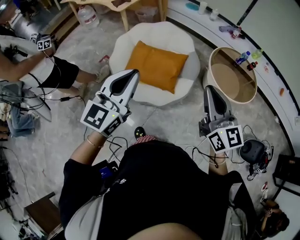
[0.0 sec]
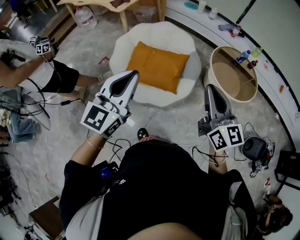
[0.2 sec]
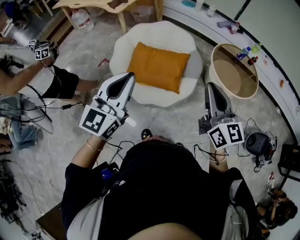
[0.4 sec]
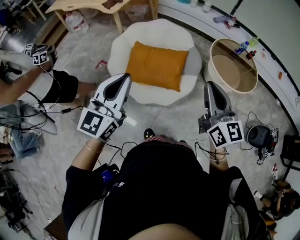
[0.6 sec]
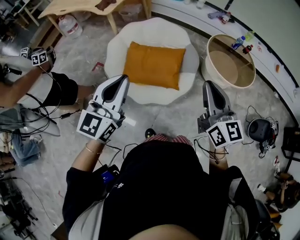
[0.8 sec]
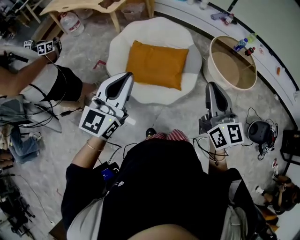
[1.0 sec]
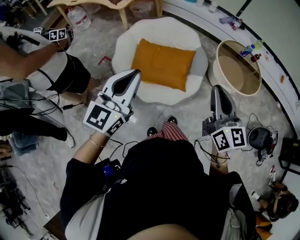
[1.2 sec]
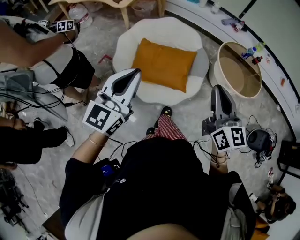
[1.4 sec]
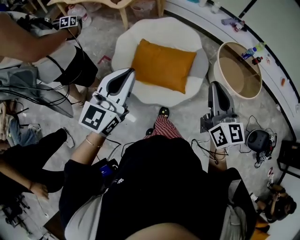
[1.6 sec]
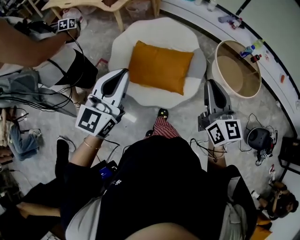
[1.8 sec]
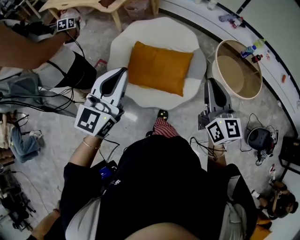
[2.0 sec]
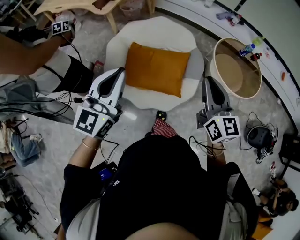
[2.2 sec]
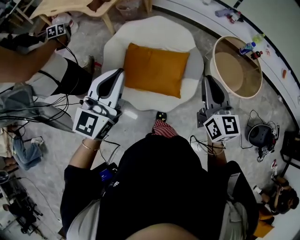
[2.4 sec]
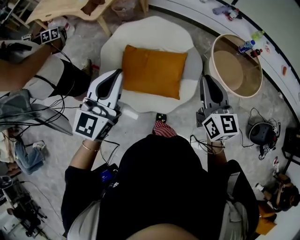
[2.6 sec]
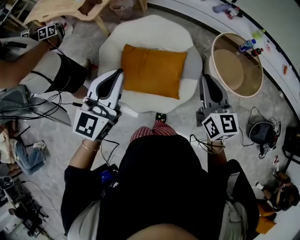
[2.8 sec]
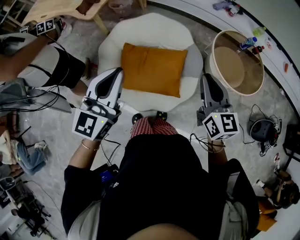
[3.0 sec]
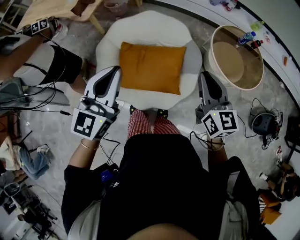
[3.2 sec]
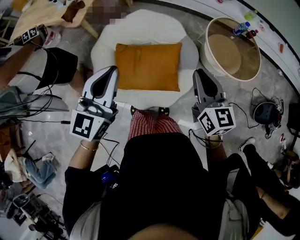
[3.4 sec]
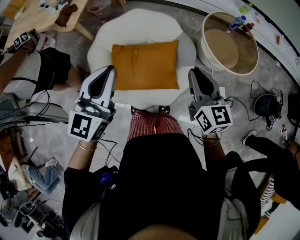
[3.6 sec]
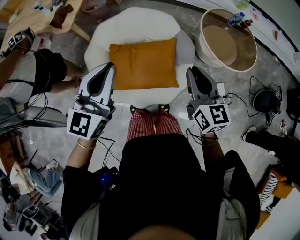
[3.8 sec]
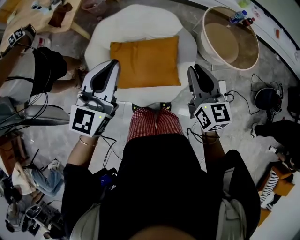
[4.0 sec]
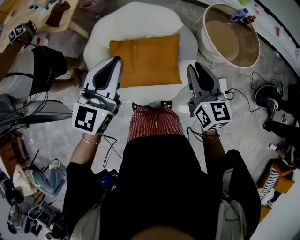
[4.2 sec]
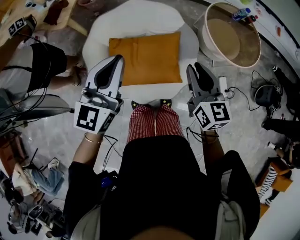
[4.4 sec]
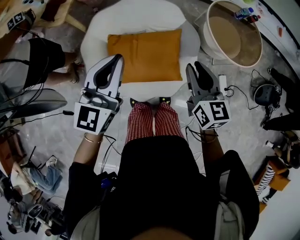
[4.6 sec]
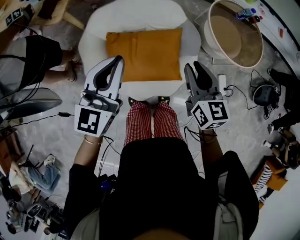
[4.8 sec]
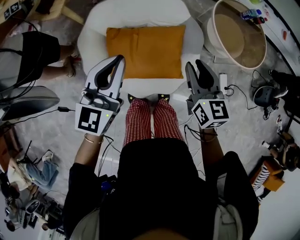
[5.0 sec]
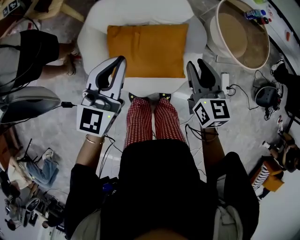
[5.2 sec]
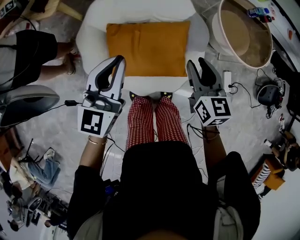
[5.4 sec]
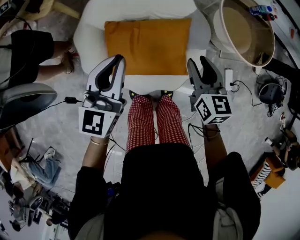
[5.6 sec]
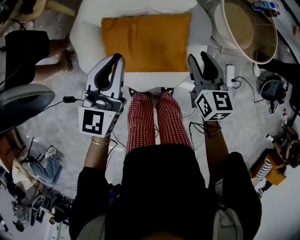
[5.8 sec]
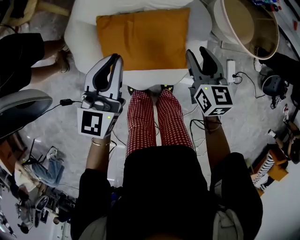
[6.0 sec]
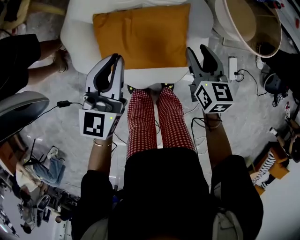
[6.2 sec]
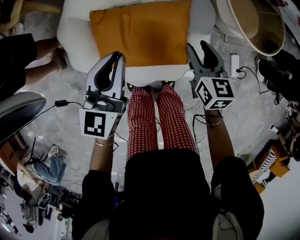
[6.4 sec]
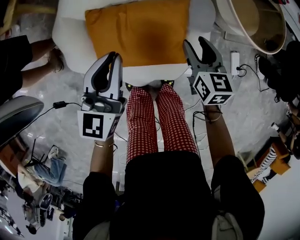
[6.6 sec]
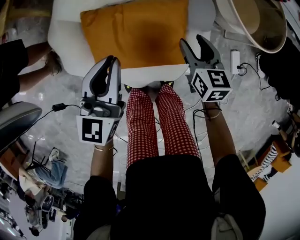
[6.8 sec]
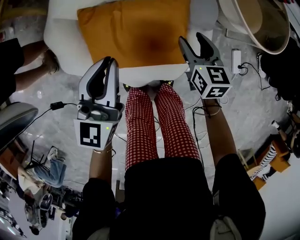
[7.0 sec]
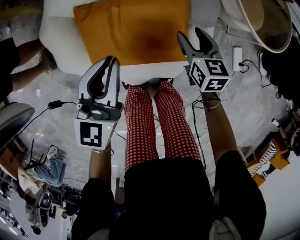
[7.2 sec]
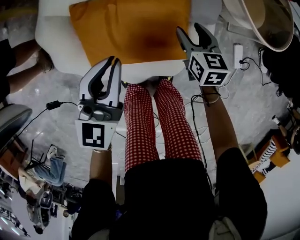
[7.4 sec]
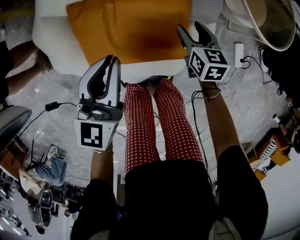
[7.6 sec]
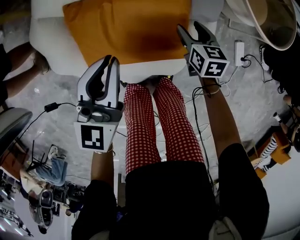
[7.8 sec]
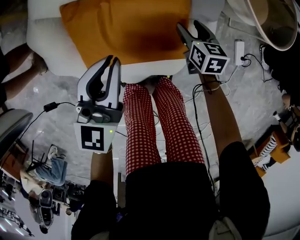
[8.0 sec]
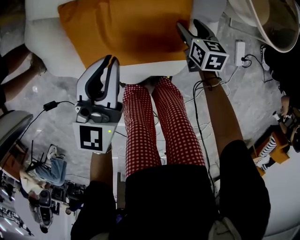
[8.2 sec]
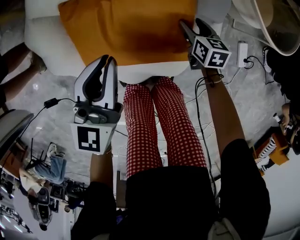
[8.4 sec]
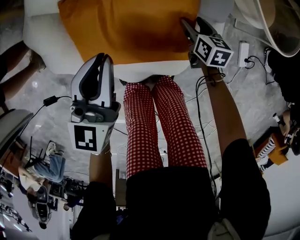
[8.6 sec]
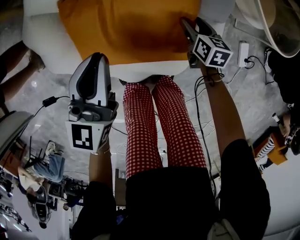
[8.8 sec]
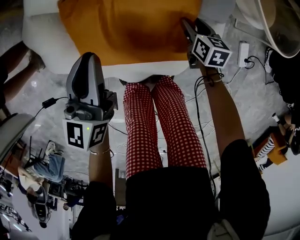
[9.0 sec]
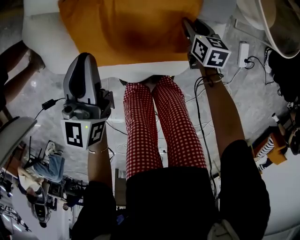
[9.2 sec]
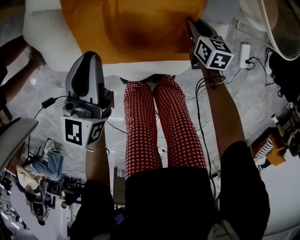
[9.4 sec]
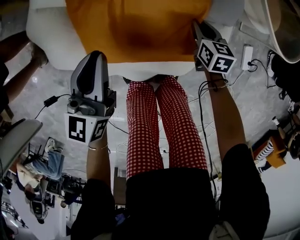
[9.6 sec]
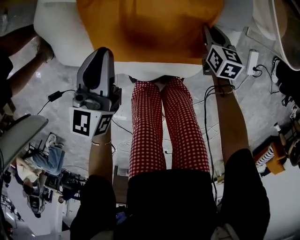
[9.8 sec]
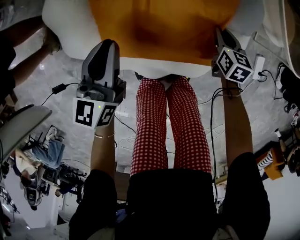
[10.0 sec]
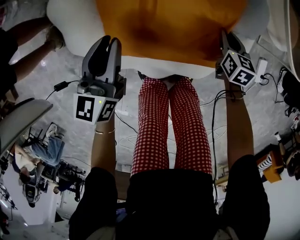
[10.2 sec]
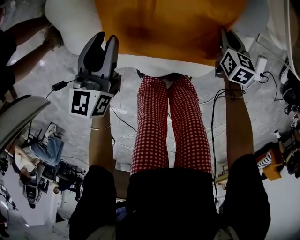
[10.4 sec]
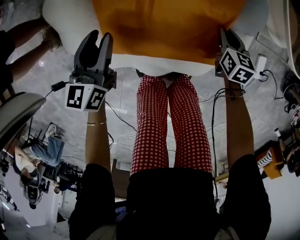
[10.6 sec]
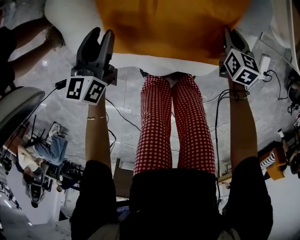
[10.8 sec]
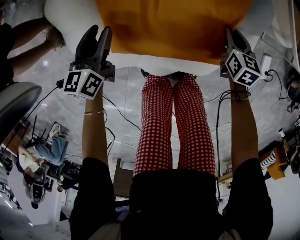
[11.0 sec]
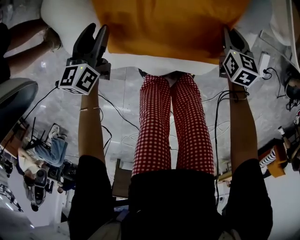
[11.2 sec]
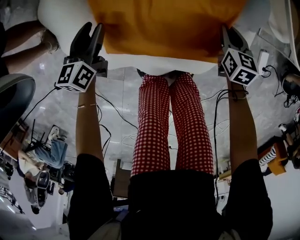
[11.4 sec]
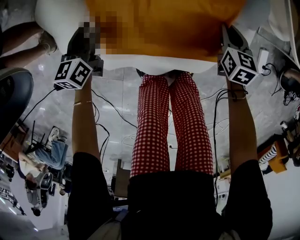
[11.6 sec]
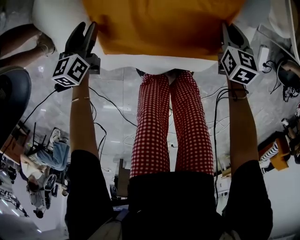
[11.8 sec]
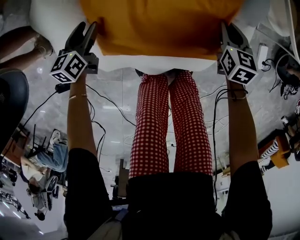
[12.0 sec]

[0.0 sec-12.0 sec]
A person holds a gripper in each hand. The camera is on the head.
0.0 sec to 1.6 sec: The grippers both shift to the left by about 15 cm.
1.6 sec to 3.0 sec: The grippers both shift forward by approximately 20 cm.
3.0 sec to 4.4 sec: The left gripper moves forward and downward, approximately 10 cm. The right gripper goes approximately 10 cm to the left and downward.
4.4 sec to 6.0 sec: Both grippers travel together downward, some 15 cm.
6.0 sec to 7.6 sec: The left gripper goes roughly 15 cm downward; the right gripper shifts roughly 25 cm downward.
7.6 sec to 9.0 sec: The right gripper shifts about 10 cm downward. The left gripper ends up approximately 5 cm from where it was.
9.0 sec to 10.4 sec: The right gripper closes, while the left gripper shifts roughly 10 cm to the left and downward, and opens its fingers.
10.4 sec to 12.0 sec: The left gripper is displaced downward and to the left by about 20 cm, turns by approximately 20 degrees, and opens.

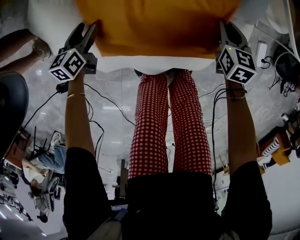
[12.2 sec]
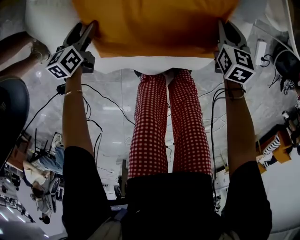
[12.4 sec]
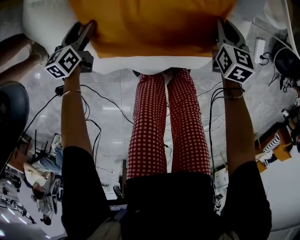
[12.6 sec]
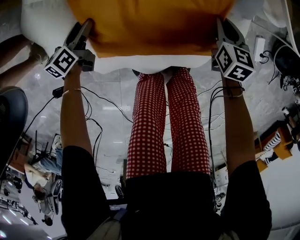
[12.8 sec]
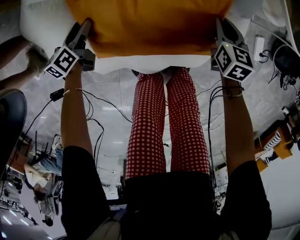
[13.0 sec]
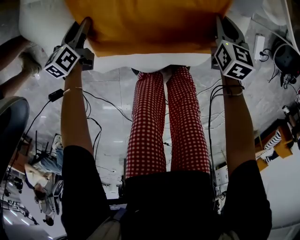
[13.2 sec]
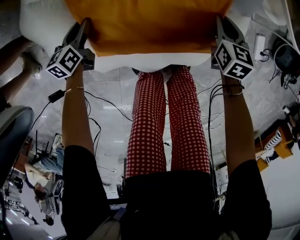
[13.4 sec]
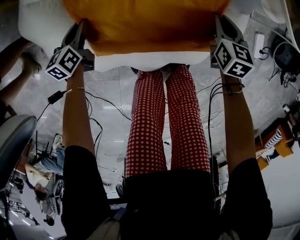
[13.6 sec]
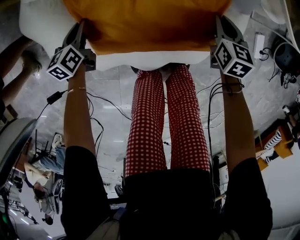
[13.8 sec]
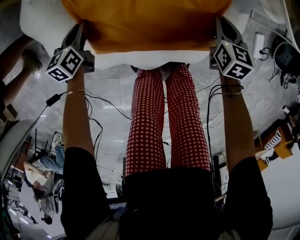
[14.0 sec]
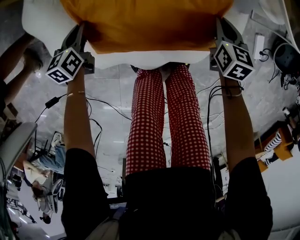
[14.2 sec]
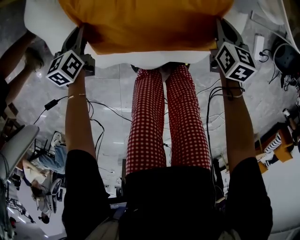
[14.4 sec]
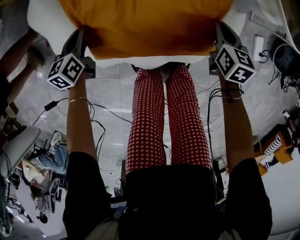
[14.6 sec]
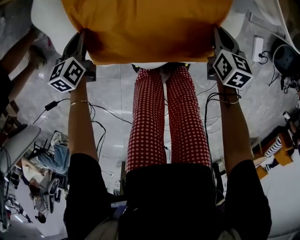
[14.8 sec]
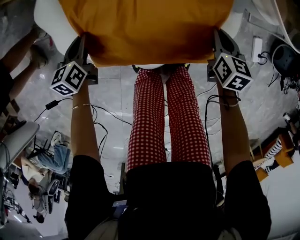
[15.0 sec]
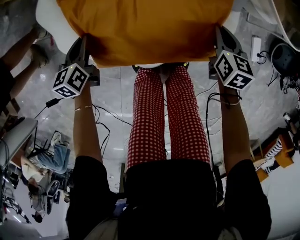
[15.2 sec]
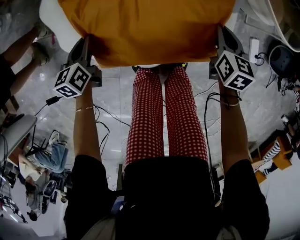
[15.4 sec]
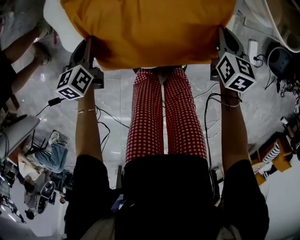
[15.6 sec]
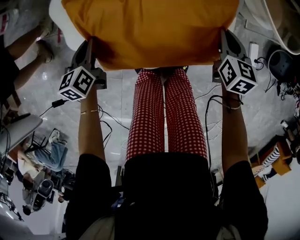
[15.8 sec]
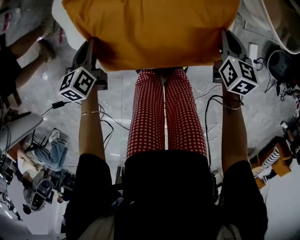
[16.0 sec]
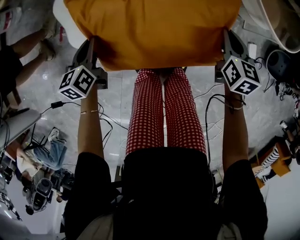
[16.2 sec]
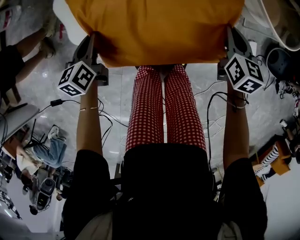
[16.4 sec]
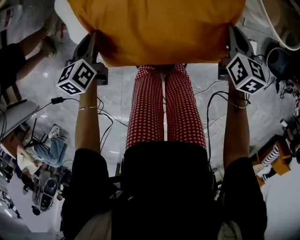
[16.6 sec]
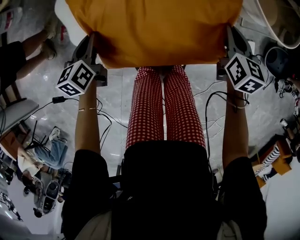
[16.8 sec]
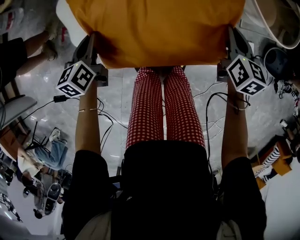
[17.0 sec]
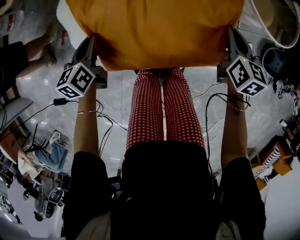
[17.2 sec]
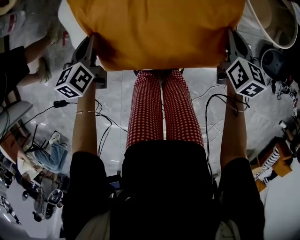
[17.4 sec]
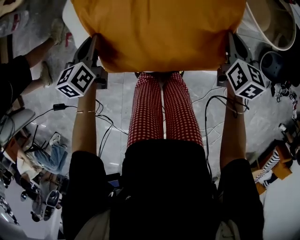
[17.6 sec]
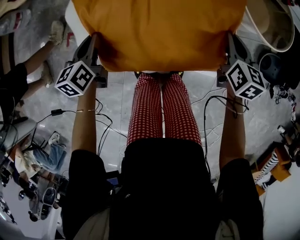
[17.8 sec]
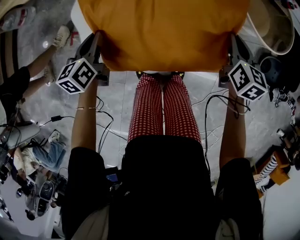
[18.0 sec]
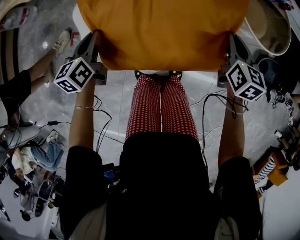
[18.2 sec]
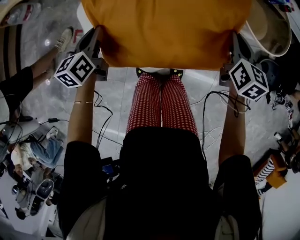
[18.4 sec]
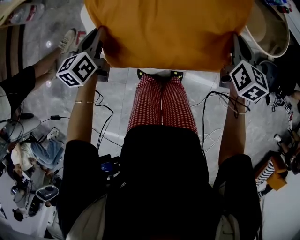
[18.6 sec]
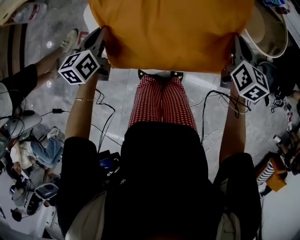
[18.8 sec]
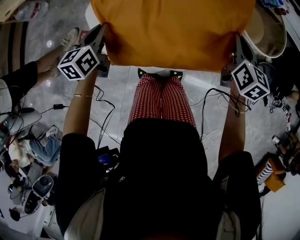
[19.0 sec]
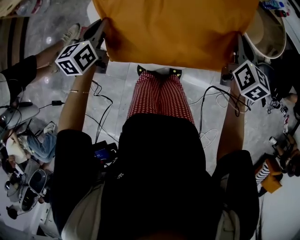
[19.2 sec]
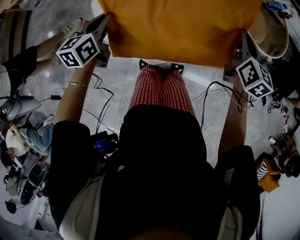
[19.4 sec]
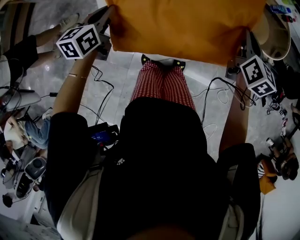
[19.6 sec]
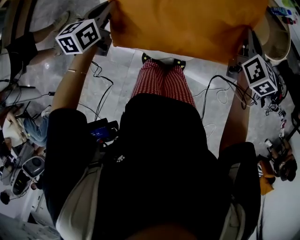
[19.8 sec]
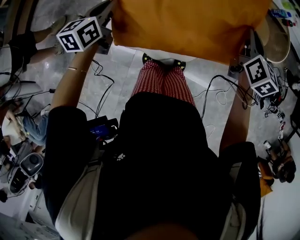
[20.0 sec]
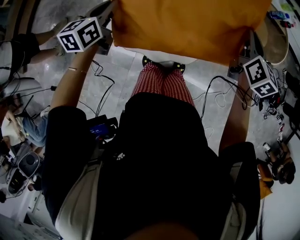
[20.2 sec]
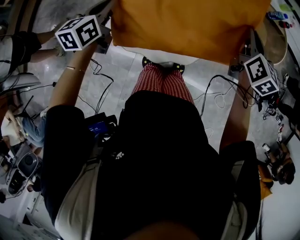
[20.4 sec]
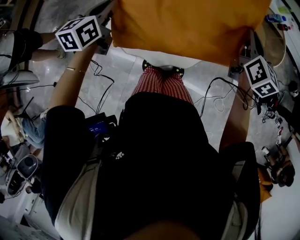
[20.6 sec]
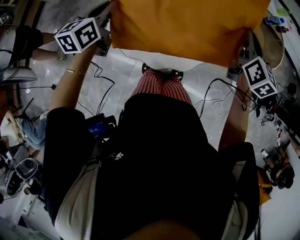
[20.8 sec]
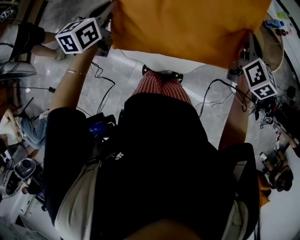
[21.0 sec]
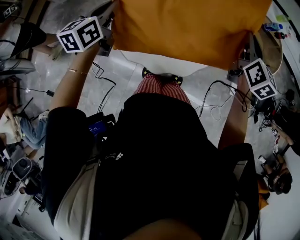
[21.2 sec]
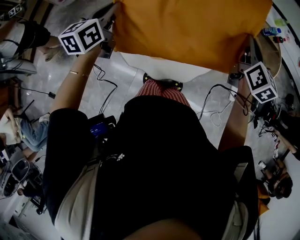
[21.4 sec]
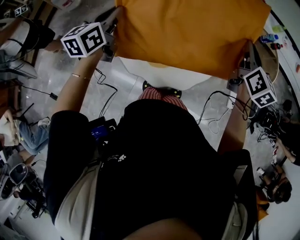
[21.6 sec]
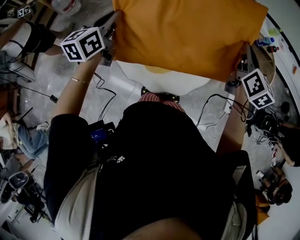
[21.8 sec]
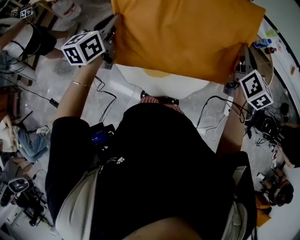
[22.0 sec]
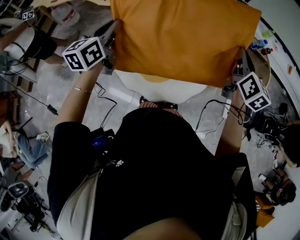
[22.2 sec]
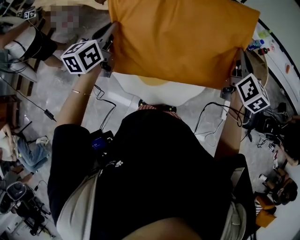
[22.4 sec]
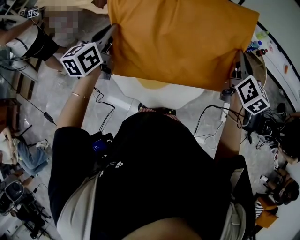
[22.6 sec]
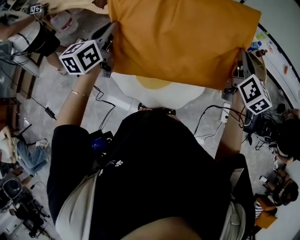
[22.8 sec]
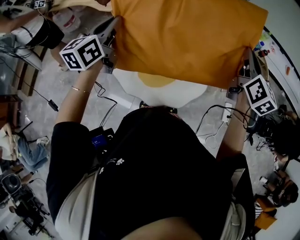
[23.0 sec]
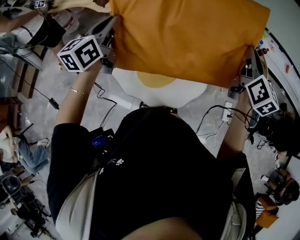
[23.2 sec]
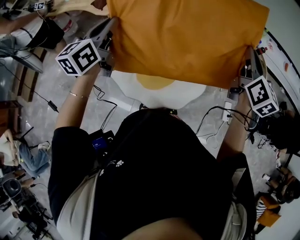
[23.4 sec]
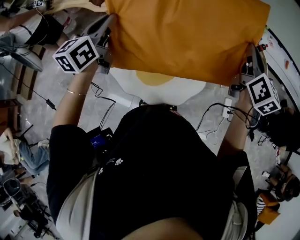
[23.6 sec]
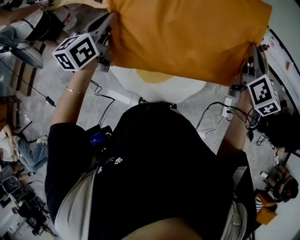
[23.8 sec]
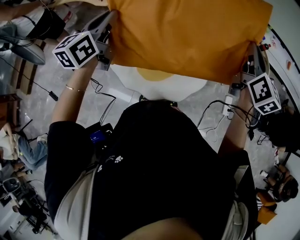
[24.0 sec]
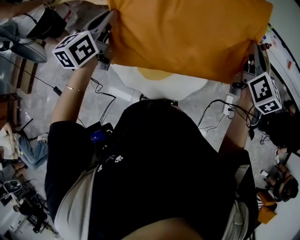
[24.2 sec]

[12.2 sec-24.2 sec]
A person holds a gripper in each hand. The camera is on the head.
12.2 sec to 13.8 sec: The left gripper closes up.
13.8 sec to 15.2 sec: The left gripper moves upward and backward, roughly 15 cm; the right gripper travels upward by roughly 5 cm.
15.2 sec to 16.6 sec: Both grippers travel together upward, about 10 cm.
16.6 sec to 18.2 sec: Both grippers travel together upward, about 15 cm.
18.2 sec to 19.8 sec: Both grippers move upward, roughly 15 cm.
19.8 sec to 21.2 sec: The two grippers go some 10 cm upward.
21.2 sec to 22.6 sec: Both grippers travel together upward, some 5 cm.
22.6 sec to 24.2 sec: The right gripper shifts by roughly 5 cm.
